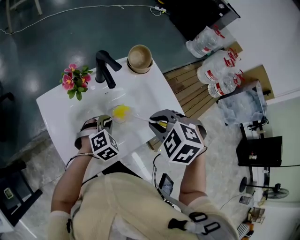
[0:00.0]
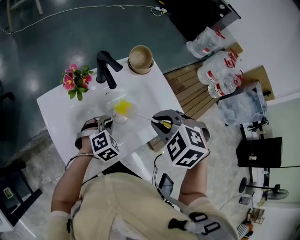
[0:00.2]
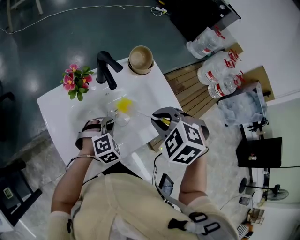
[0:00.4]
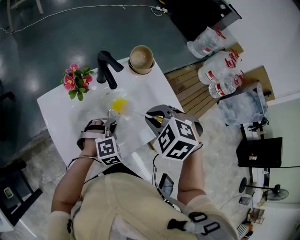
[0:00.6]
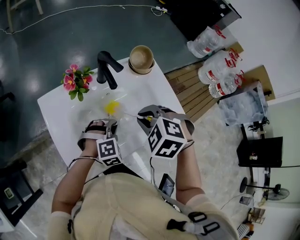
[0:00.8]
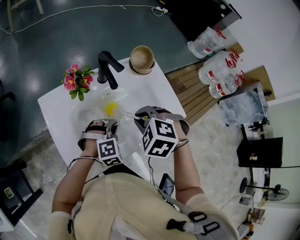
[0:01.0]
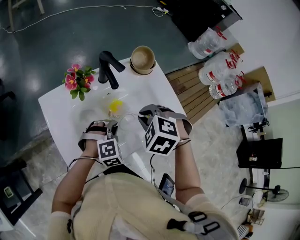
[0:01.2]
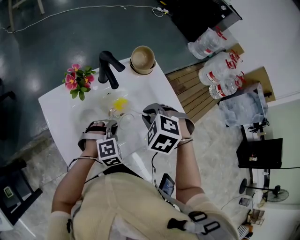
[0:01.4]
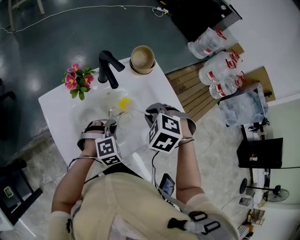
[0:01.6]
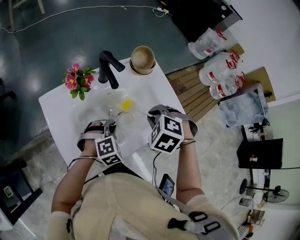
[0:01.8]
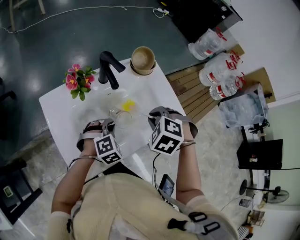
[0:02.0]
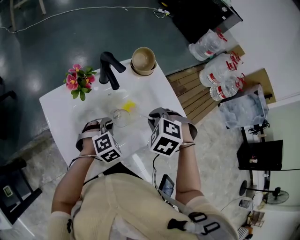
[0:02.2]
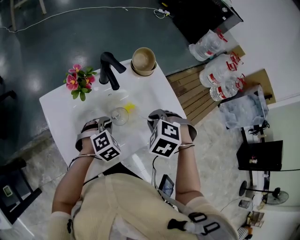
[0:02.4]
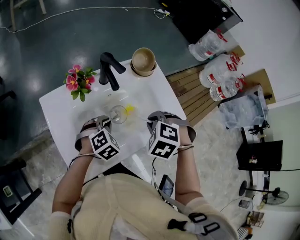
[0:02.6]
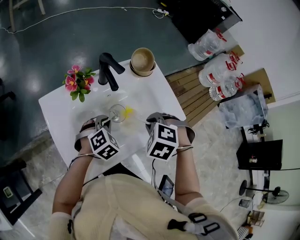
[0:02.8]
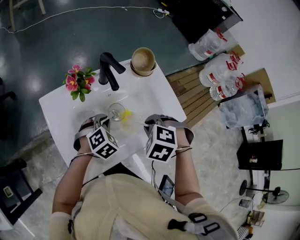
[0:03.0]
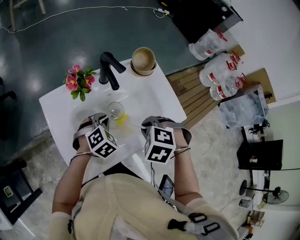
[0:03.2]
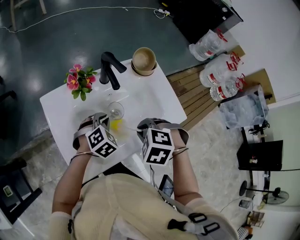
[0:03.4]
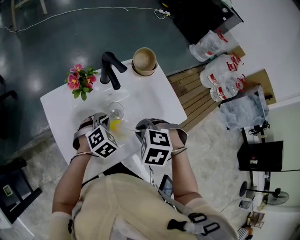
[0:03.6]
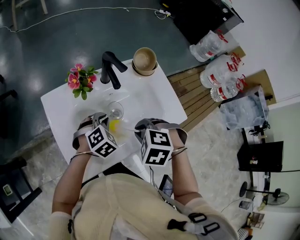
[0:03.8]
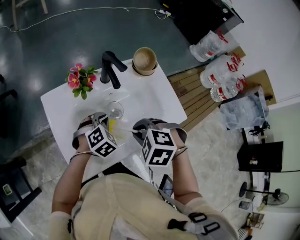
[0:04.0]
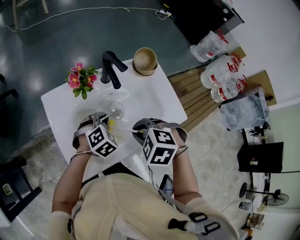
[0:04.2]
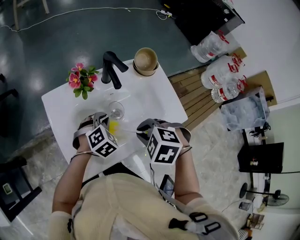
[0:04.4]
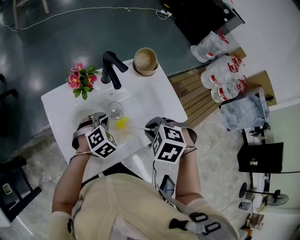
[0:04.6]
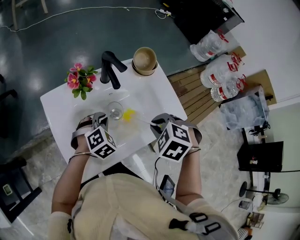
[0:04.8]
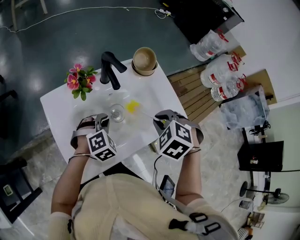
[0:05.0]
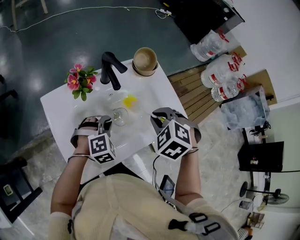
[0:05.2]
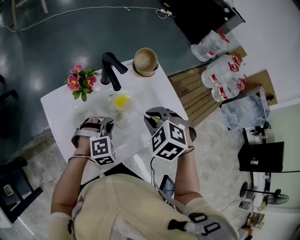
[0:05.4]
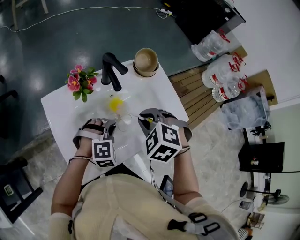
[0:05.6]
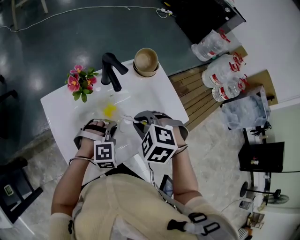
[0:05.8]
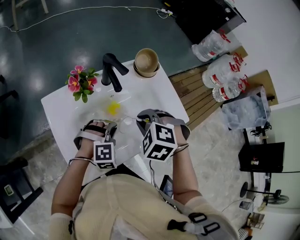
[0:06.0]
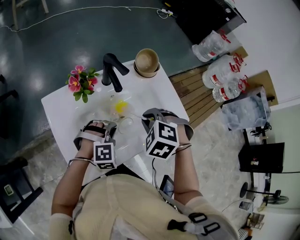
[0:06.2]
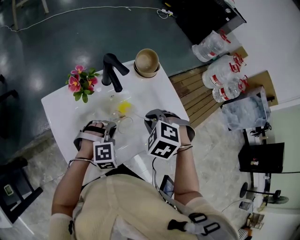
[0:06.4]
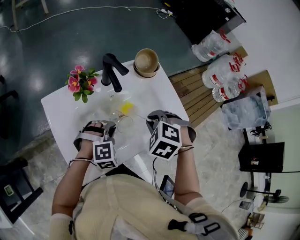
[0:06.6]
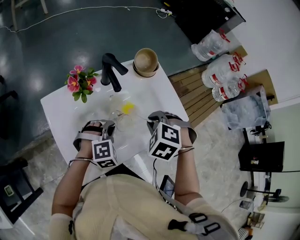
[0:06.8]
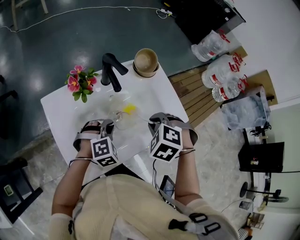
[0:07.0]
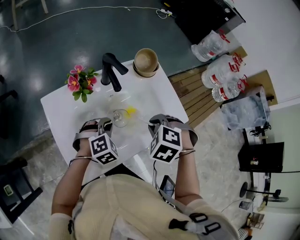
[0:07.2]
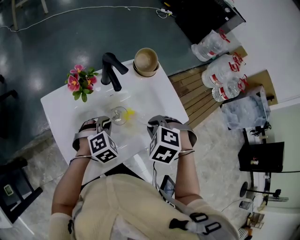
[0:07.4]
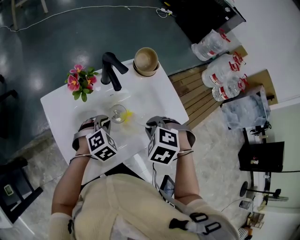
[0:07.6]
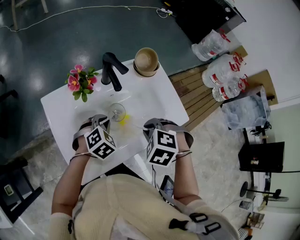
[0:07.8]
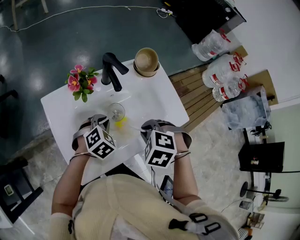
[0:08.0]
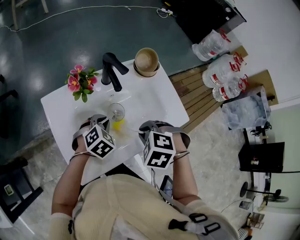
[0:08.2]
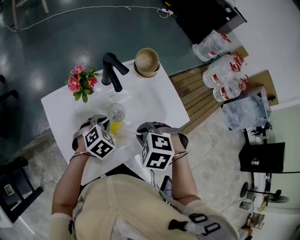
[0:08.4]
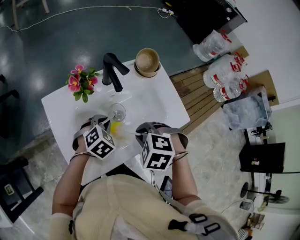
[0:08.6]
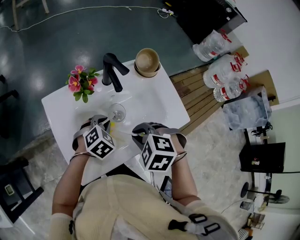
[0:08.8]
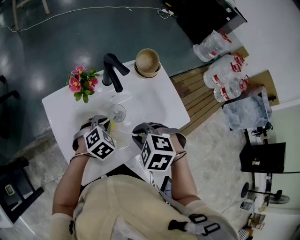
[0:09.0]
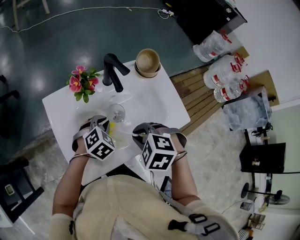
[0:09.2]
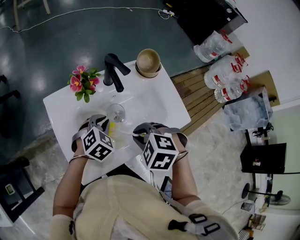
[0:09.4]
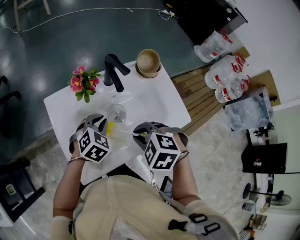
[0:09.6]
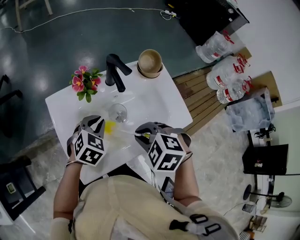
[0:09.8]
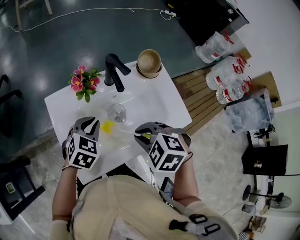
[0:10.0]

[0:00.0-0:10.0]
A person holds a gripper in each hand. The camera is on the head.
0:01.4 to 0:02.8: The left gripper rotates approximately 20 degrees.
0:04.2 to 0:05.8: The left gripper moves about 5 cm, and swivels some 30 degrees.
0:05.8 to 0:07.2: The left gripper changes its angle by roughly 20 degrees.
0:08.6 to 0:10.0: The left gripper heads upward, covering roughly 5 cm.

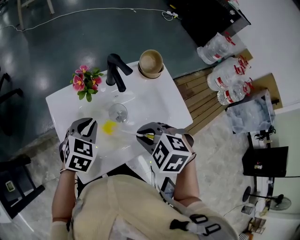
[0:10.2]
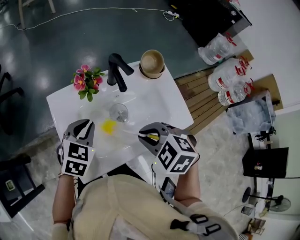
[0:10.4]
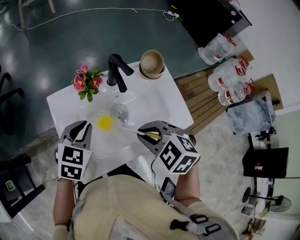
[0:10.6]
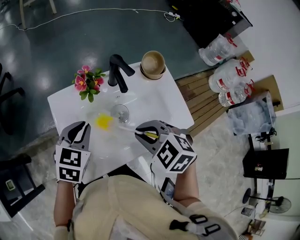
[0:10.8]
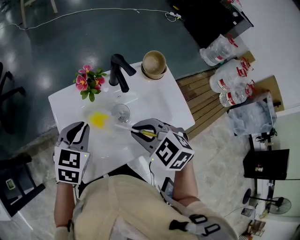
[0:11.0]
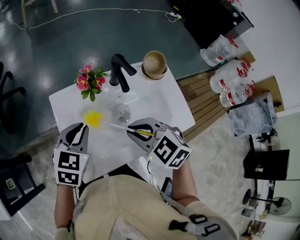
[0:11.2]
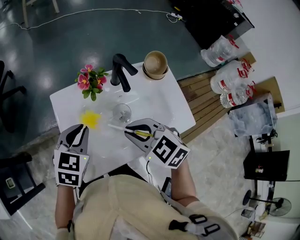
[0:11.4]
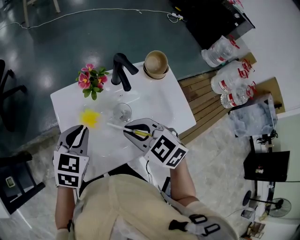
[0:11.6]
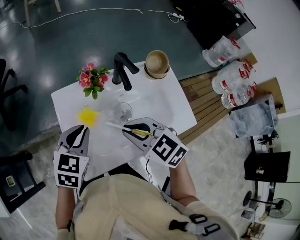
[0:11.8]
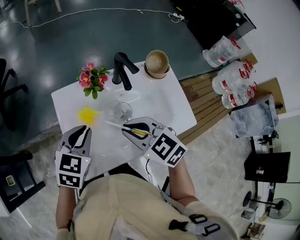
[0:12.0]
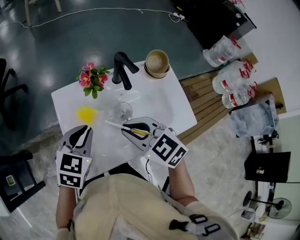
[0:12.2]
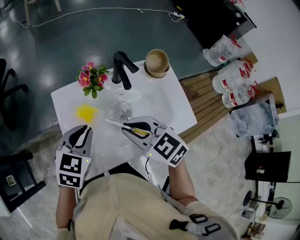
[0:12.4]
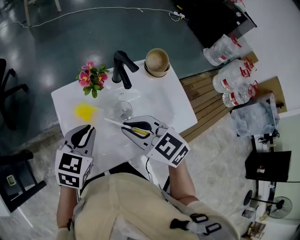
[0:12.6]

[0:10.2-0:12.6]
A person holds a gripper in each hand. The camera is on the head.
0:10.2 to 0:11.4: The left gripper ends up roughly 5 cm from where it was.

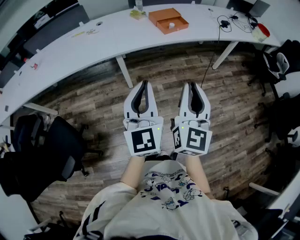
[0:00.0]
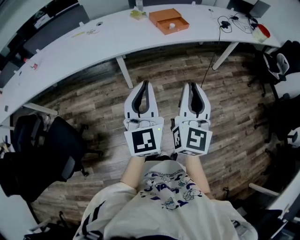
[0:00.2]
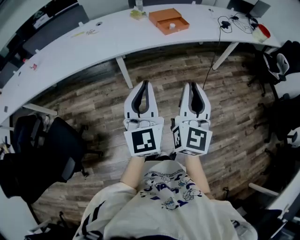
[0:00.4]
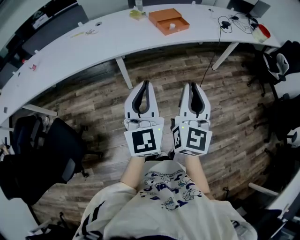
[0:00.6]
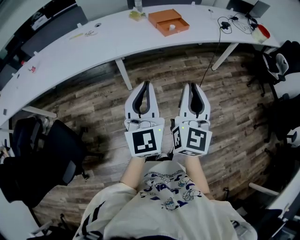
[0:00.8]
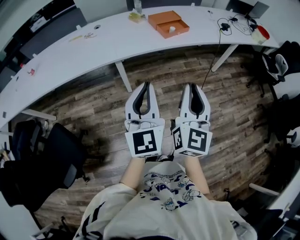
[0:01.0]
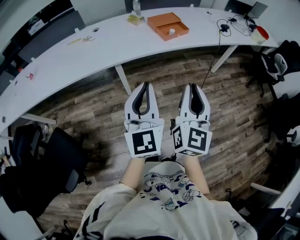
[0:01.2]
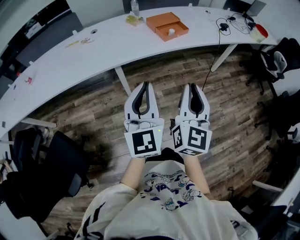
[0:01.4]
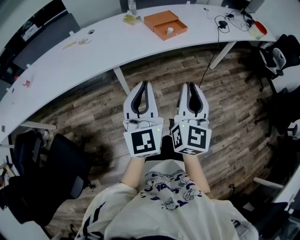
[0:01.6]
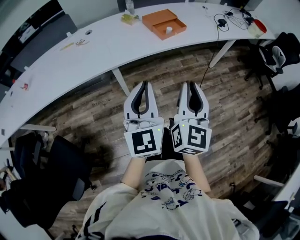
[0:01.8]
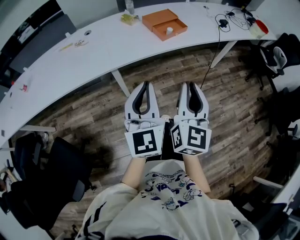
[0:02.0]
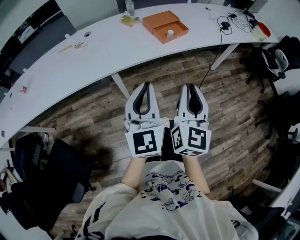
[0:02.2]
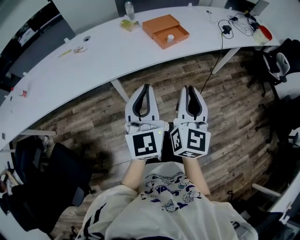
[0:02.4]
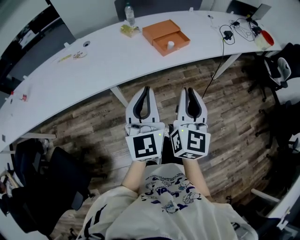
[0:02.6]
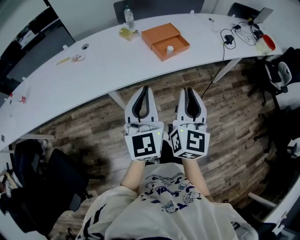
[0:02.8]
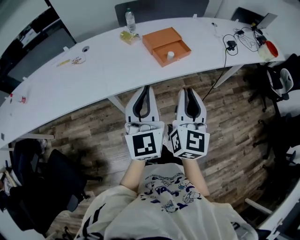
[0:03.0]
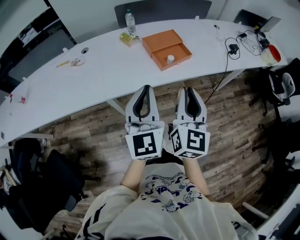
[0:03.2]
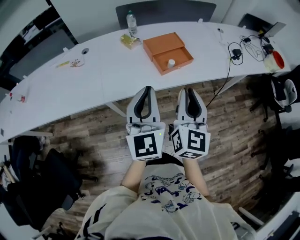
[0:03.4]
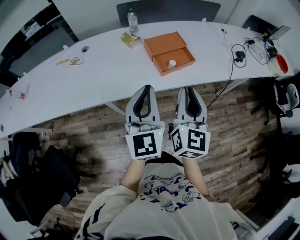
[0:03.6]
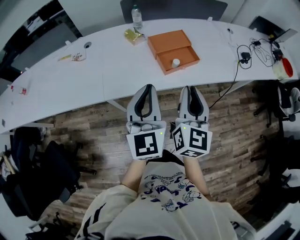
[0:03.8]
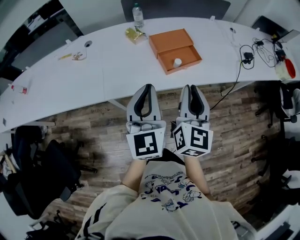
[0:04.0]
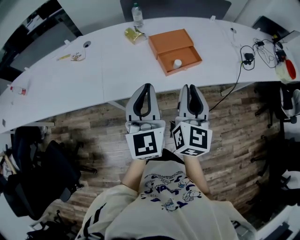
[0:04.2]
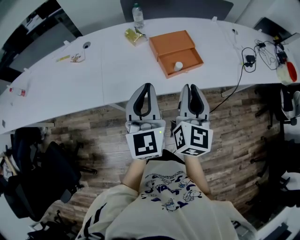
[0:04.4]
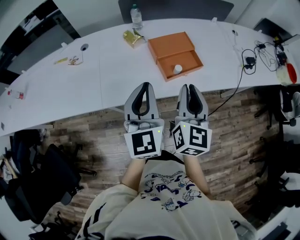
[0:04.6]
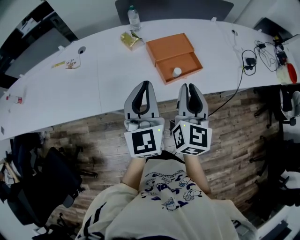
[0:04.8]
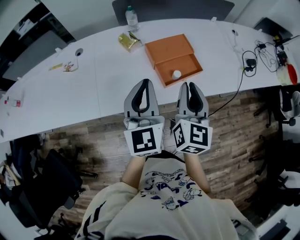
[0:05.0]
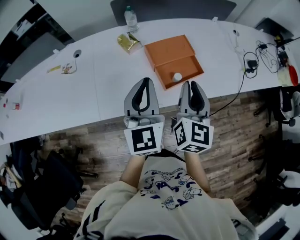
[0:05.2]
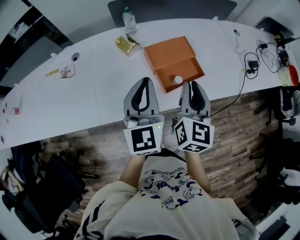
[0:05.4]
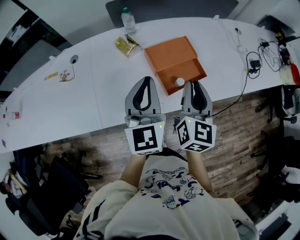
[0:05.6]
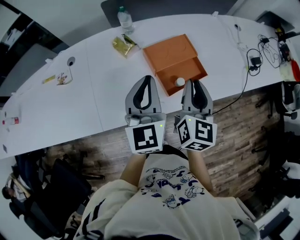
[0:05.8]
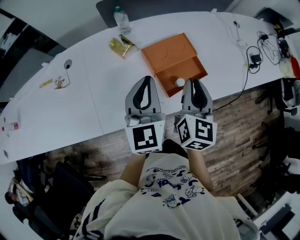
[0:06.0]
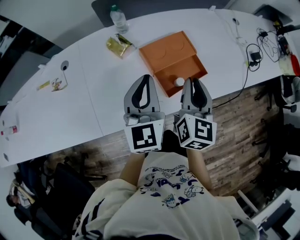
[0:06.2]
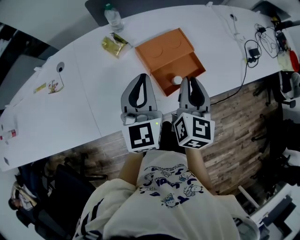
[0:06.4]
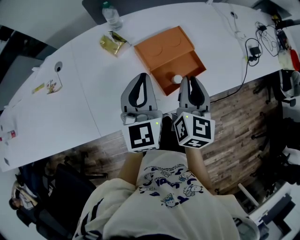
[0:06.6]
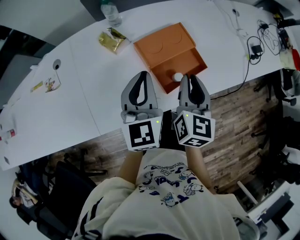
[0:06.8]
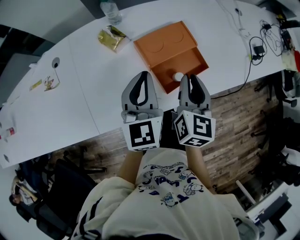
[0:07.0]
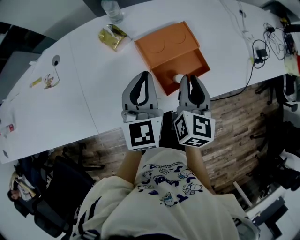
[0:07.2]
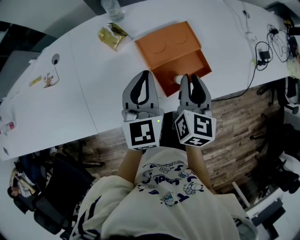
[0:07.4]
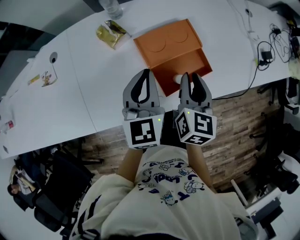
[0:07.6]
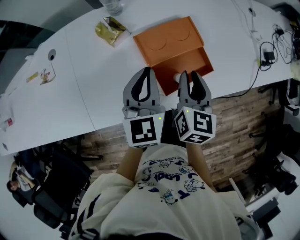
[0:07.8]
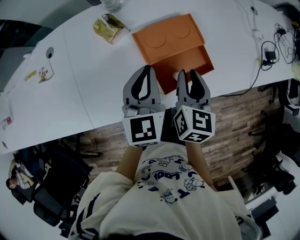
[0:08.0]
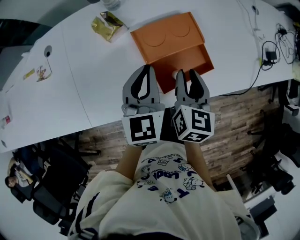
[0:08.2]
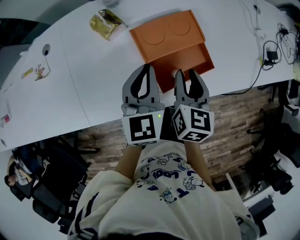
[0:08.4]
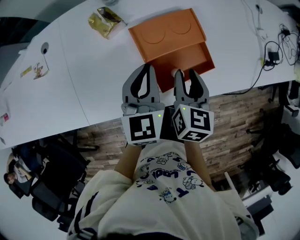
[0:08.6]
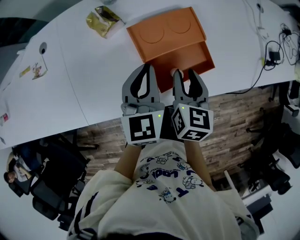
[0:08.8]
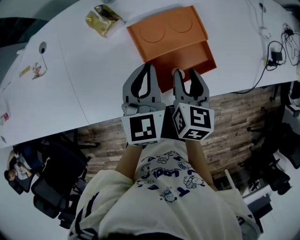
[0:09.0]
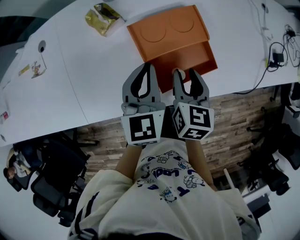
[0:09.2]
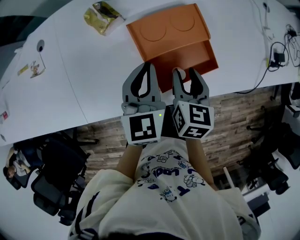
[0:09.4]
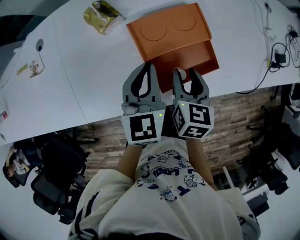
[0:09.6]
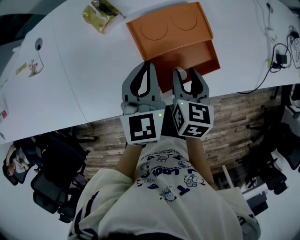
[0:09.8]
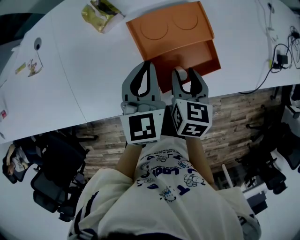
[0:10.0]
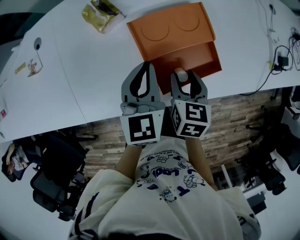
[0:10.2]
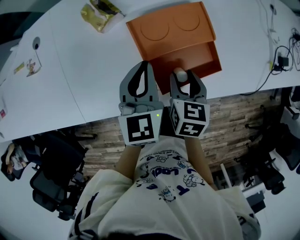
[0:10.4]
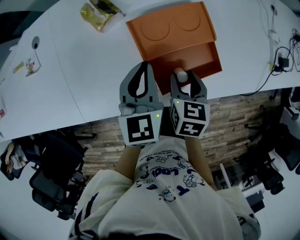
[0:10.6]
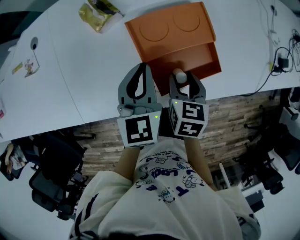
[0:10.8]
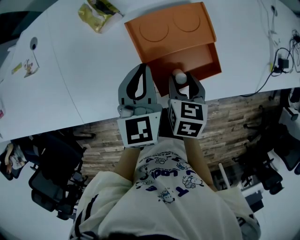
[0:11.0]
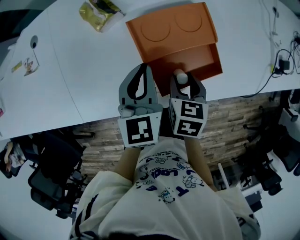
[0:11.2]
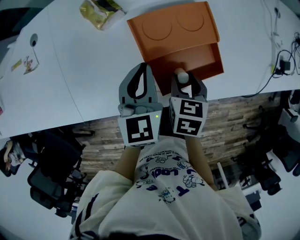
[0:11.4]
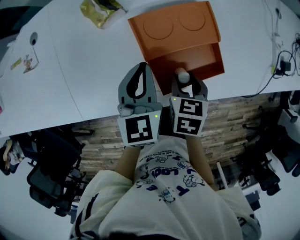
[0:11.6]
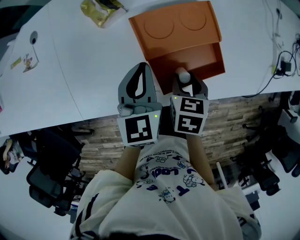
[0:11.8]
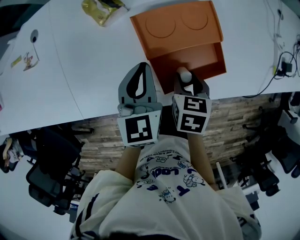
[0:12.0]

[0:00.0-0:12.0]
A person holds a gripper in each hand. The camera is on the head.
0:00.0 to 0:01.6: The right gripper goes roughly 10 cm forward and to the left. The left gripper moves forward, about 10 cm.
0:01.6 to 0:03.0: The grippers both shift forward by about 25 cm.
0:03.0 to 0:04.4: Both grippers travel together forward, approximately 15 cm.
0:04.4 to 0:06.0: Both grippers travel together forward, roughly 20 cm.
0:06.0 to 0:07.6: The two grippers go some 10 cm downward and forward.
0:07.6 to 0:09.0: The grippers both shift downward by some 5 cm.
0:09.0 to 0:10.4: The right gripper travels downward by roughly 5 cm.
0:10.4 to 0:12.0: The grippers stay close to where they were, moving slightly.
